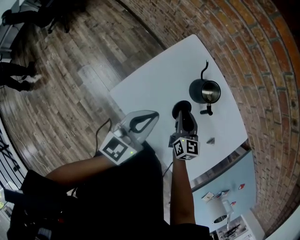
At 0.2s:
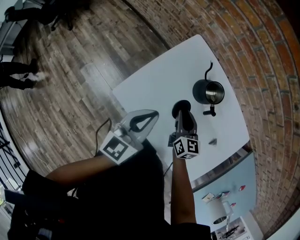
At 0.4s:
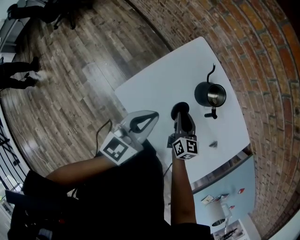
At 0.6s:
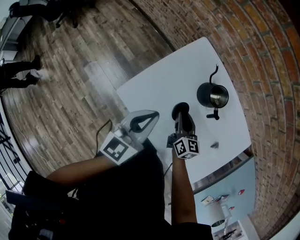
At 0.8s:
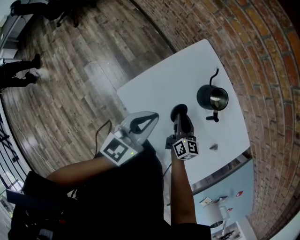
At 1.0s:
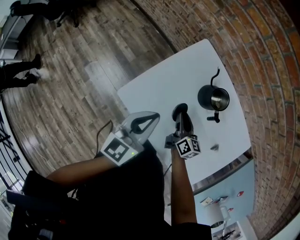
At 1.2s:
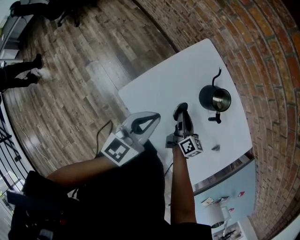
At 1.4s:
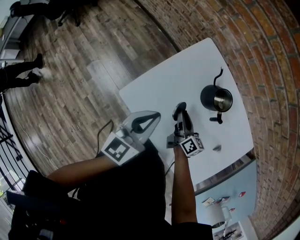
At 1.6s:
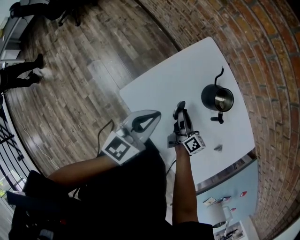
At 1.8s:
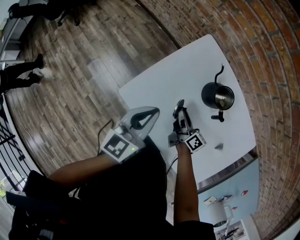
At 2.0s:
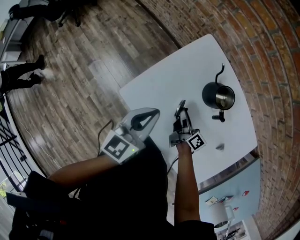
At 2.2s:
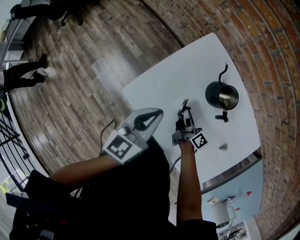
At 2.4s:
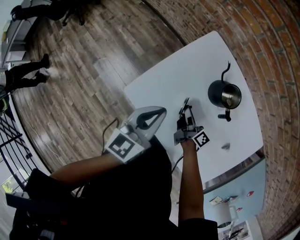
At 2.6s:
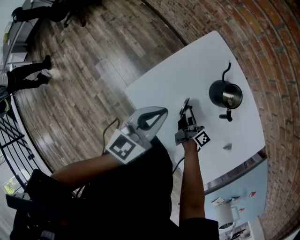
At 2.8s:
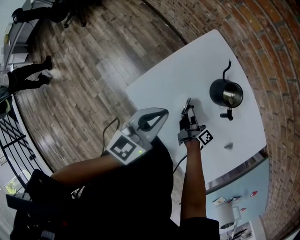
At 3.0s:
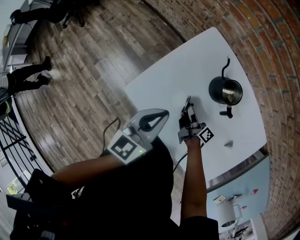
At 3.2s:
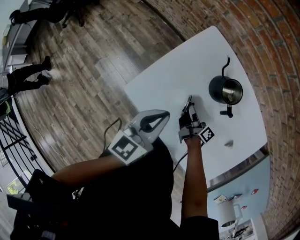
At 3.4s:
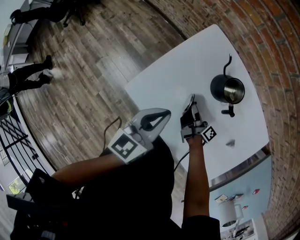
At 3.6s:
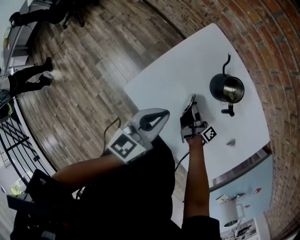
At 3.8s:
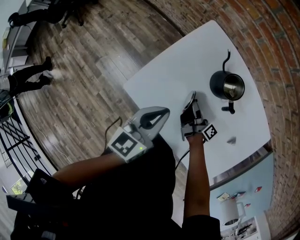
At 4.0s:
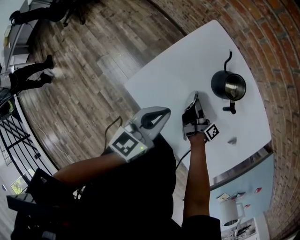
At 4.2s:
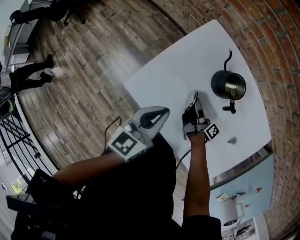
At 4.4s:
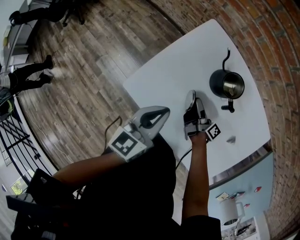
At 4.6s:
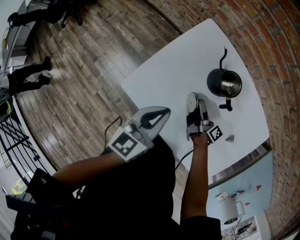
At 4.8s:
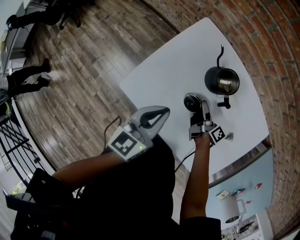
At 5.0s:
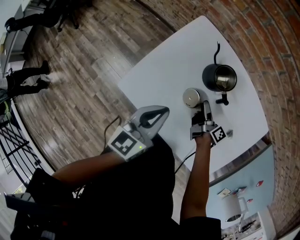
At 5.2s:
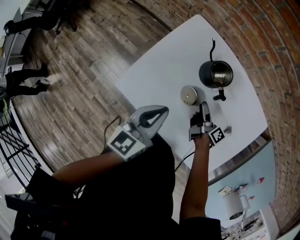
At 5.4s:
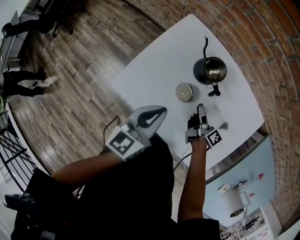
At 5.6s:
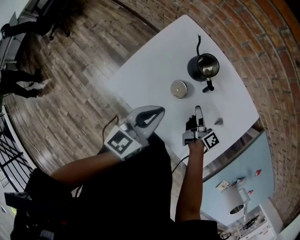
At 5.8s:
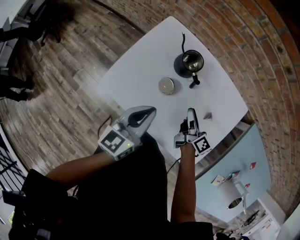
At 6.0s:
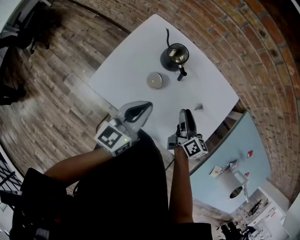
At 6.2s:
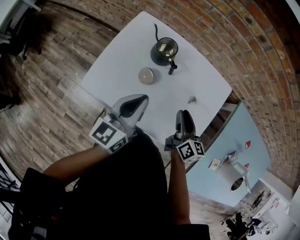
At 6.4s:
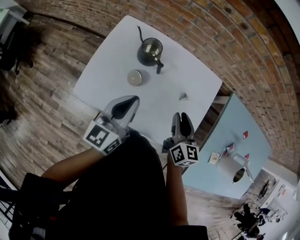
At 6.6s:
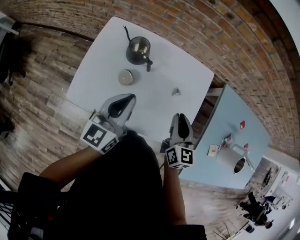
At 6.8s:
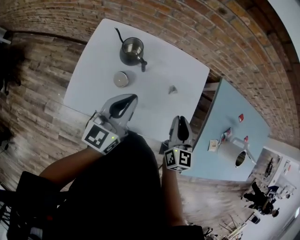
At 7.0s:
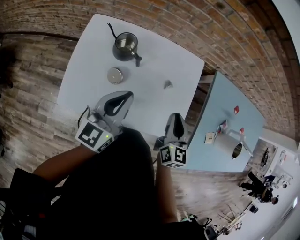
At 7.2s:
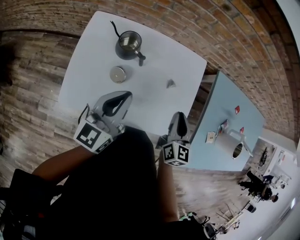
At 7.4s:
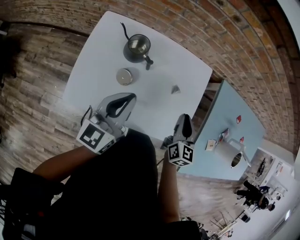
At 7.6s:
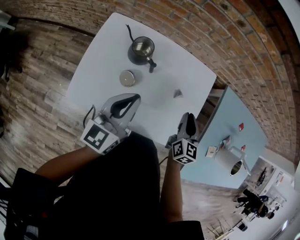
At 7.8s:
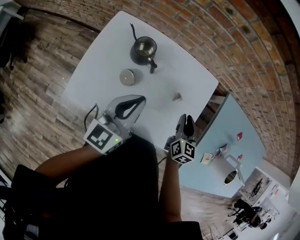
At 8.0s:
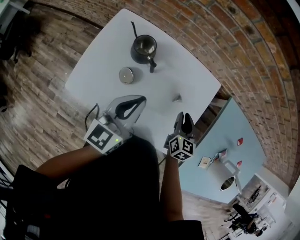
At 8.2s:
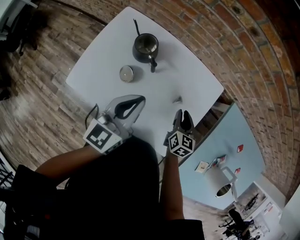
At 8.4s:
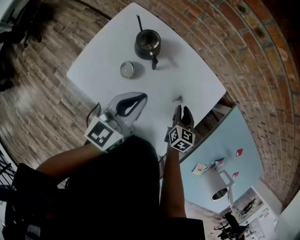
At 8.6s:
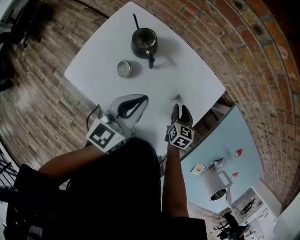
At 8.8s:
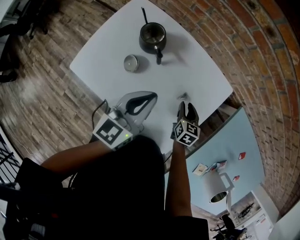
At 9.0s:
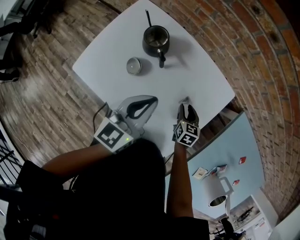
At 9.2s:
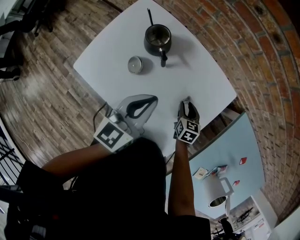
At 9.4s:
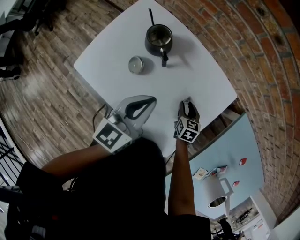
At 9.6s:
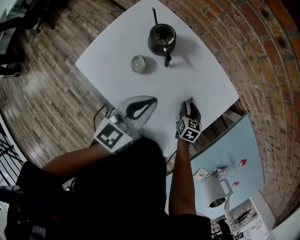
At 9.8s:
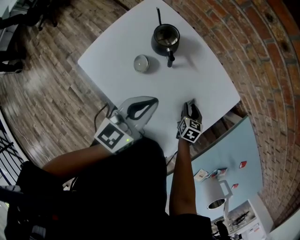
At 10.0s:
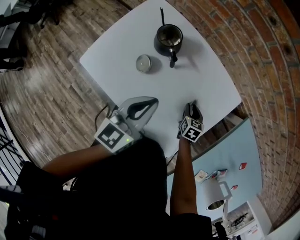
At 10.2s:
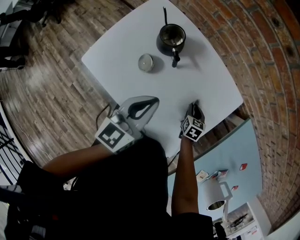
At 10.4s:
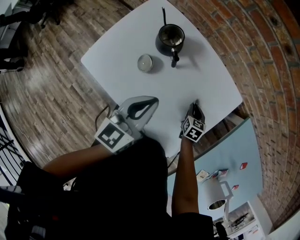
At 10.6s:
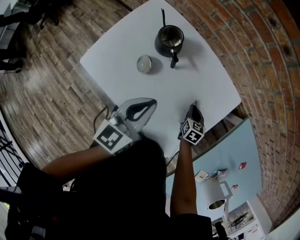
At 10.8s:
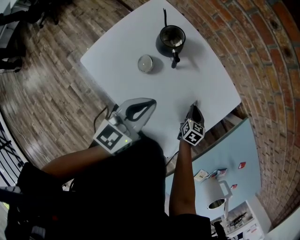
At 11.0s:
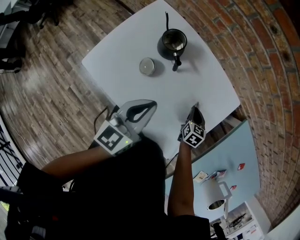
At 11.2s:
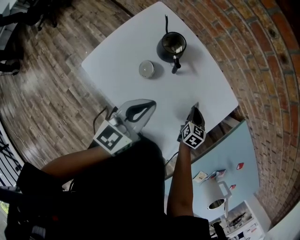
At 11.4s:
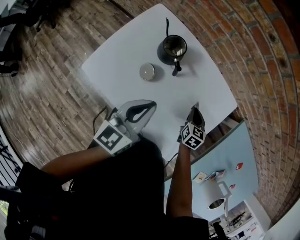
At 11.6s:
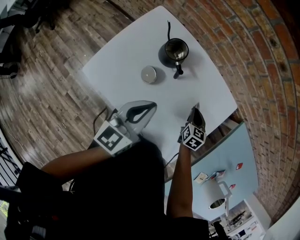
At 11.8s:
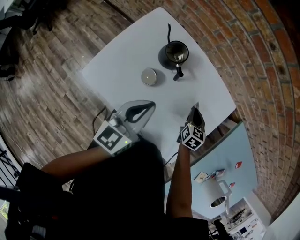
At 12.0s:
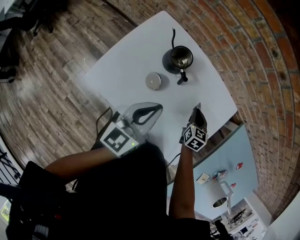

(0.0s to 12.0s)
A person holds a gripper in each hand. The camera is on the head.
0.0s - 1.6s: The right gripper goes some 5 cm downward, and changes its angle by roughly 40 degrees.
1.6s - 3.0s: The right gripper changes its angle by roughly 30 degrees.
3.0s - 4.4s: The right gripper opens.
4.4s - 6.0s: The left gripper is displaced to the right, backward and upward by approximately 10 cm; the right gripper travels to the right, upward and backward by approximately 25 cm, and rolls counterclockwise, seen from behind, by some 50 degrees.
6.0s - 7.6s: The left gripper moves roughly 5 cm; the right gripper moves about 10 cm, and rotates roughly 40 degrees.
7.6s - 9.0s: The right gripper travels downward by approximately 20 cm, and turns by roughly 30 degrees, while the left gripper goes approximately 10 cm to the right.
9.0s - 10.4s: The right gripper closes.
10.4s - 12.0s: The right gripper heads upward and to the left, covering about 10 cm; the left gripper moves to the left, approximately 5 cm.

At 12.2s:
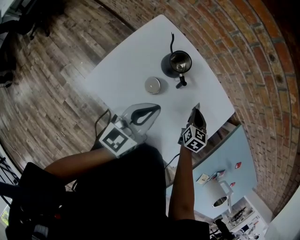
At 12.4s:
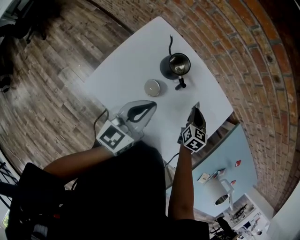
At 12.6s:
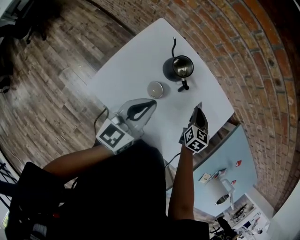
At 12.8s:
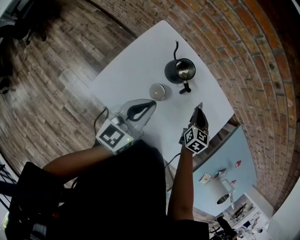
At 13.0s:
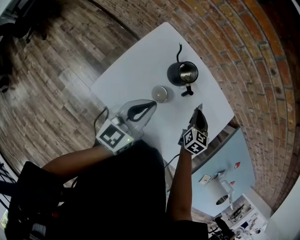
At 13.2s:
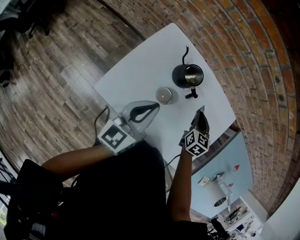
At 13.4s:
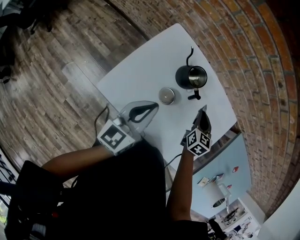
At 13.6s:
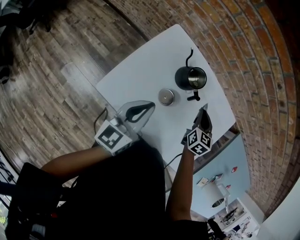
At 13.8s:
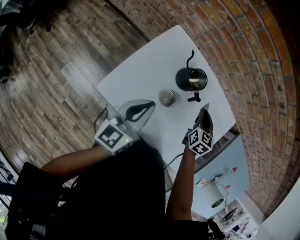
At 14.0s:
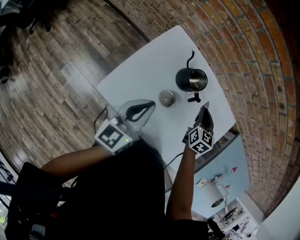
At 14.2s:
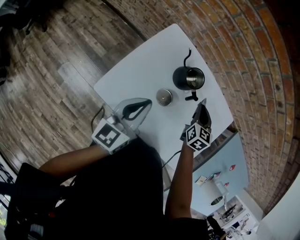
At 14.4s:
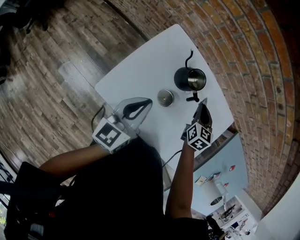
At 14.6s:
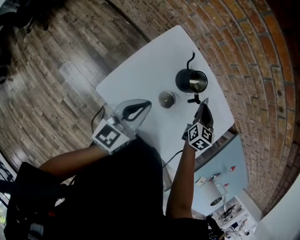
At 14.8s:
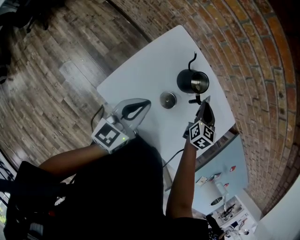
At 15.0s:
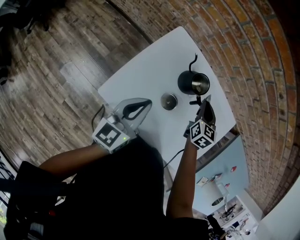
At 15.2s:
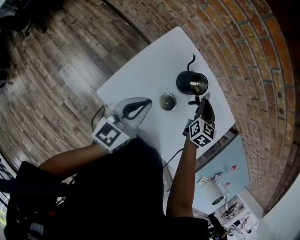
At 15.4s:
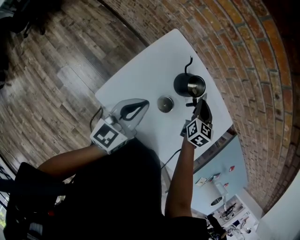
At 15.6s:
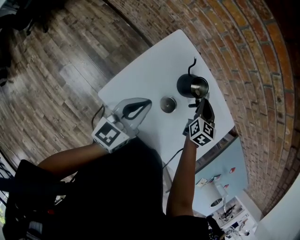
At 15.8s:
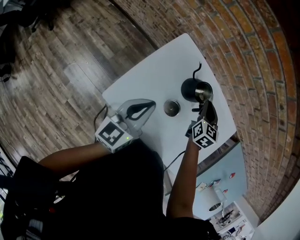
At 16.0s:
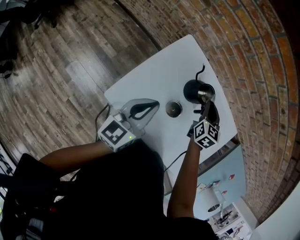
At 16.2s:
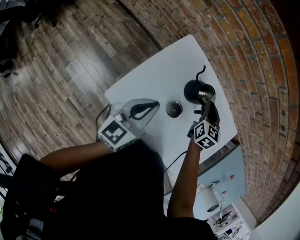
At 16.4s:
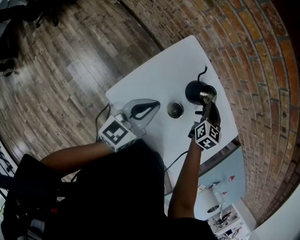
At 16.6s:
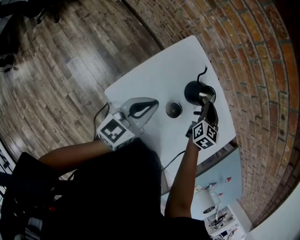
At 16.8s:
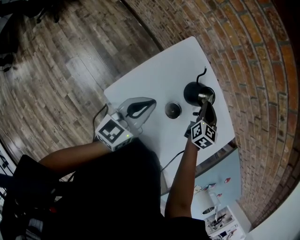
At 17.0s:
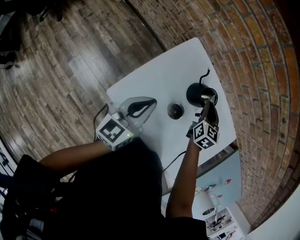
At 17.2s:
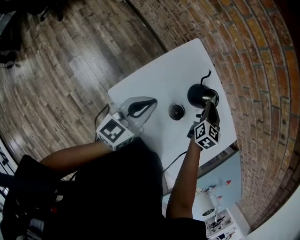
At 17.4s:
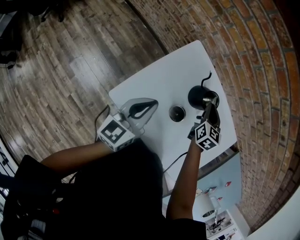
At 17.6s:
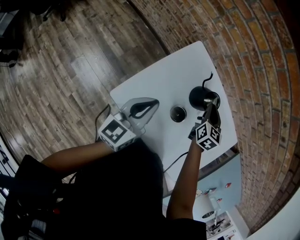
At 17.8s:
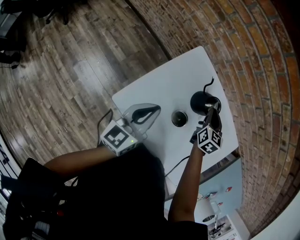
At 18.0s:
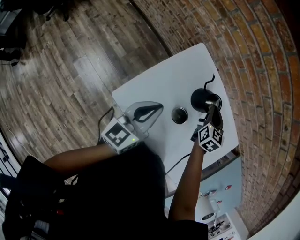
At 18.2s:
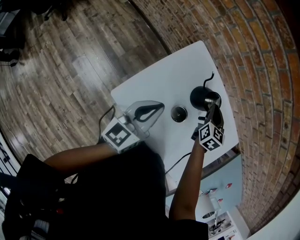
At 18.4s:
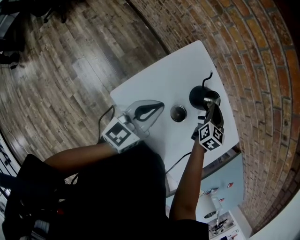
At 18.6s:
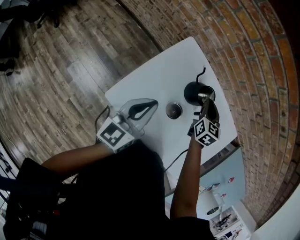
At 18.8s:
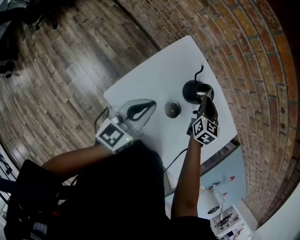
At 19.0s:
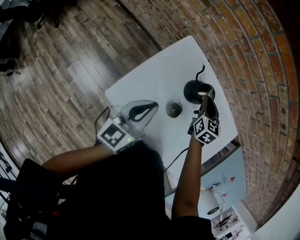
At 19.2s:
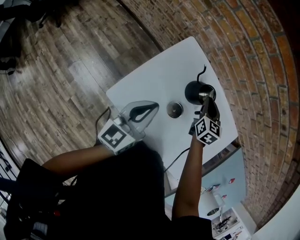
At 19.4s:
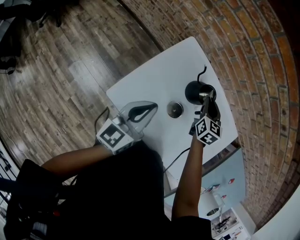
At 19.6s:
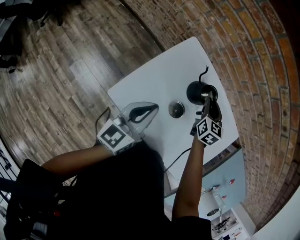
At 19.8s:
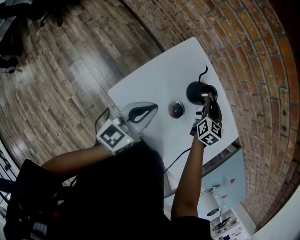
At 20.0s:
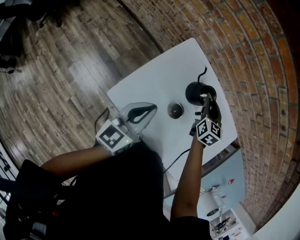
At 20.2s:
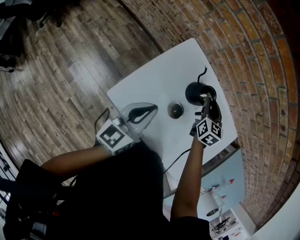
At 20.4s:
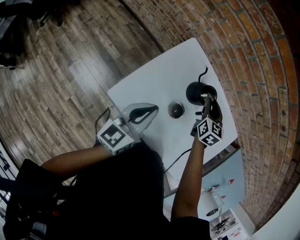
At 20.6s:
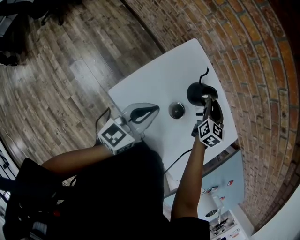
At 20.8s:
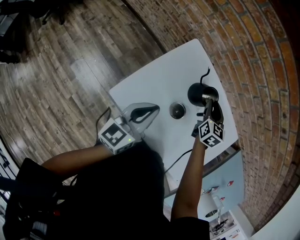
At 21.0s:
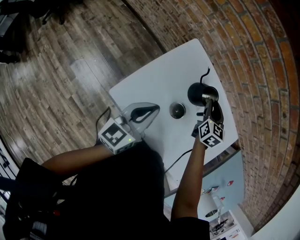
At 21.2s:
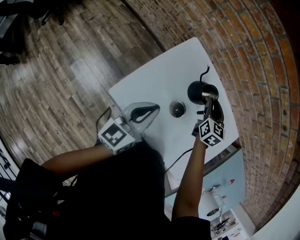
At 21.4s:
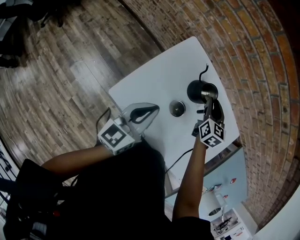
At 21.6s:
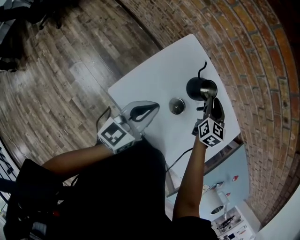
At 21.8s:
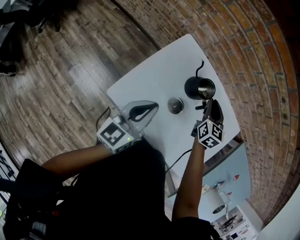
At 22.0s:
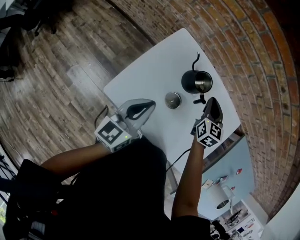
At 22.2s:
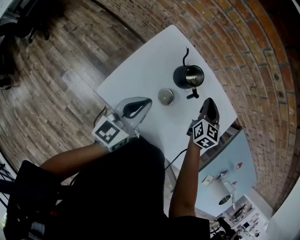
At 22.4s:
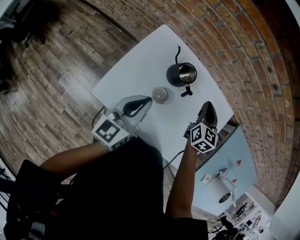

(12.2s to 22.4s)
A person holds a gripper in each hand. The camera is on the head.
12.2s - 13.6s: The left gripper shifts some 10 cm to the left, while the right gripper heads to the left and upward, covering approximately 10 cm.
13.6s - 15.2s: The right gripper heads to the left, covering some 5 cm.
15.2s - 19.4s: The grippers make only small movements.
19.4s - 21.0s: Both grippers stay about where they are.
21.0s - 22.4s: The left gripper heads to the right, covering approximately 5 cm. The right gripper travels to the right, backward and upward by about 15 cm, and closes up.

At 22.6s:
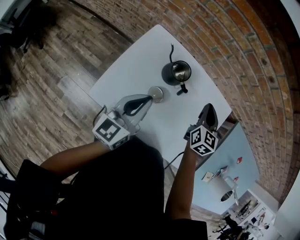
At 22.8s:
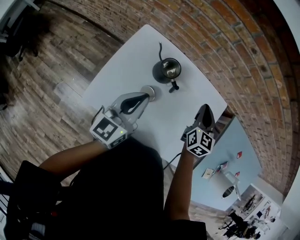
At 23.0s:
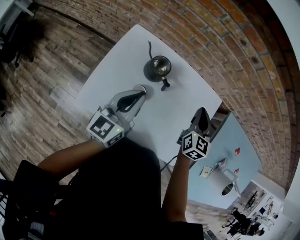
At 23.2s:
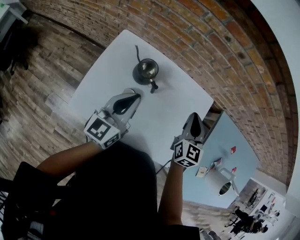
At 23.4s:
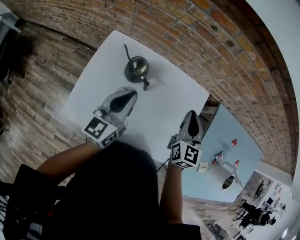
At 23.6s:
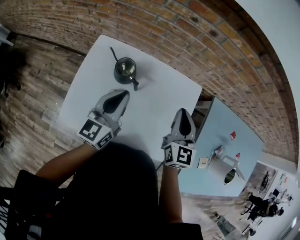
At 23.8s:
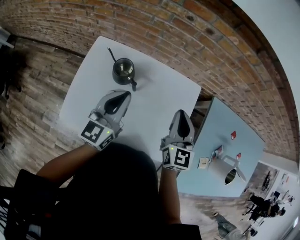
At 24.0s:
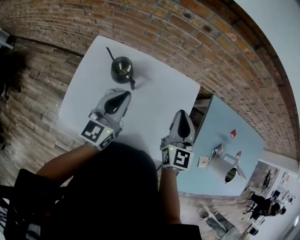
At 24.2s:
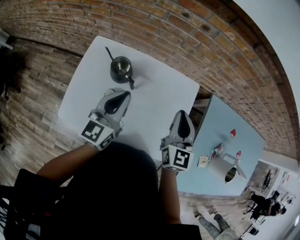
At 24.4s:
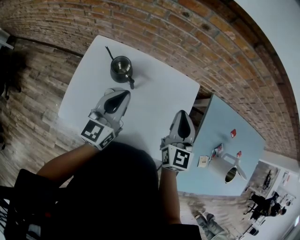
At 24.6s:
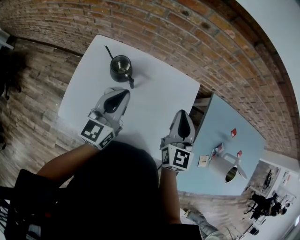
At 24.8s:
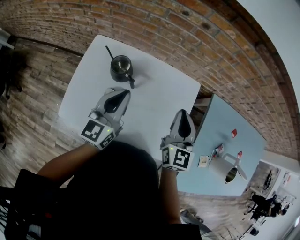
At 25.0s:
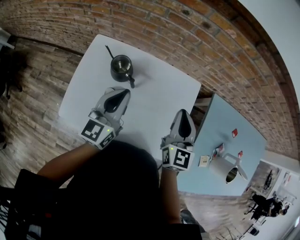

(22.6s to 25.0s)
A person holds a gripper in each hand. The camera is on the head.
22.6s - 23.8s: The right gripper travels to the right, upward and backward by about 15 cm. Meanwhile the left gripper is displaced to the right and forward by approximately 15 cm.
23.8s - 25.0s: The grippers stay close to where they were, moving slightly.
